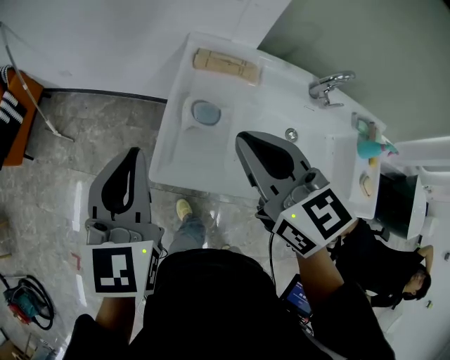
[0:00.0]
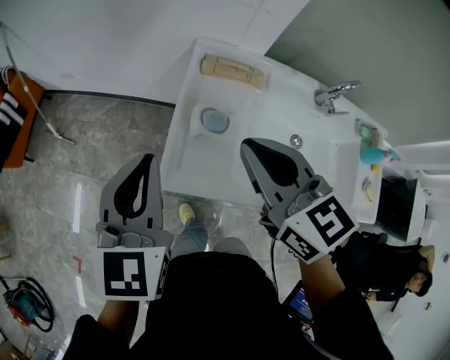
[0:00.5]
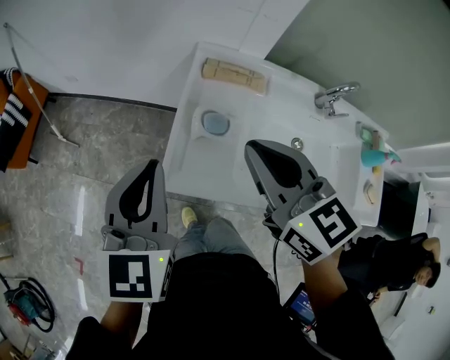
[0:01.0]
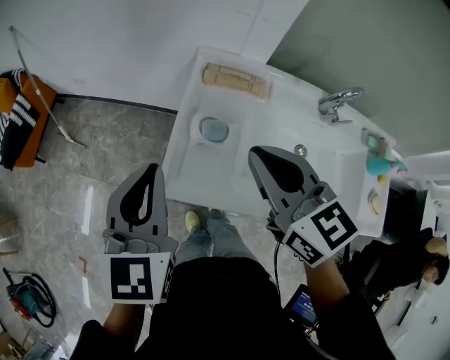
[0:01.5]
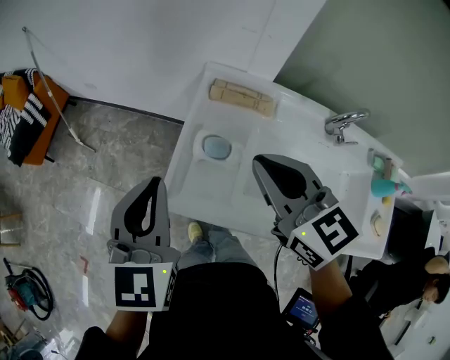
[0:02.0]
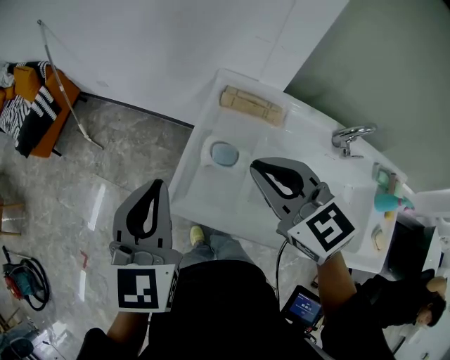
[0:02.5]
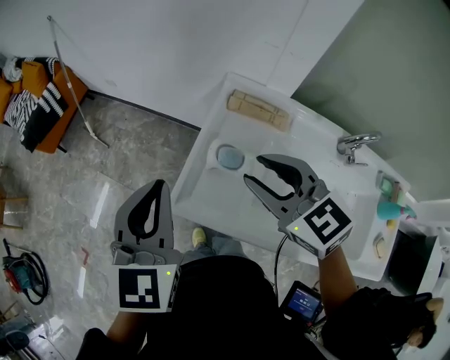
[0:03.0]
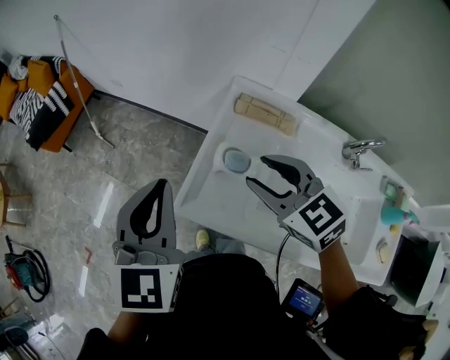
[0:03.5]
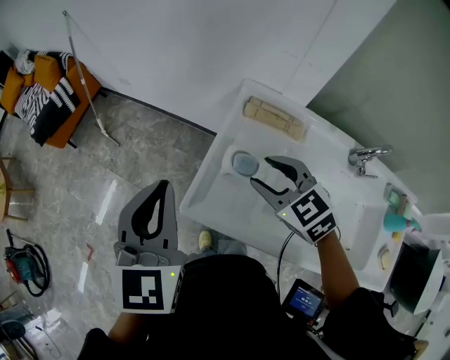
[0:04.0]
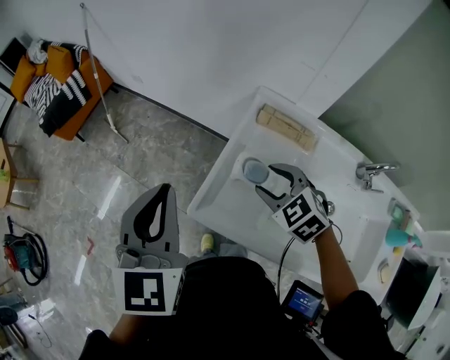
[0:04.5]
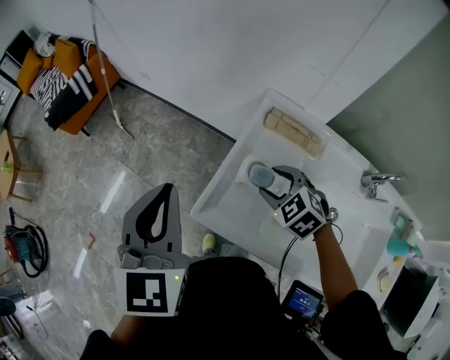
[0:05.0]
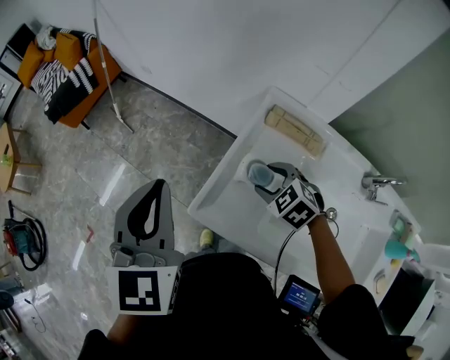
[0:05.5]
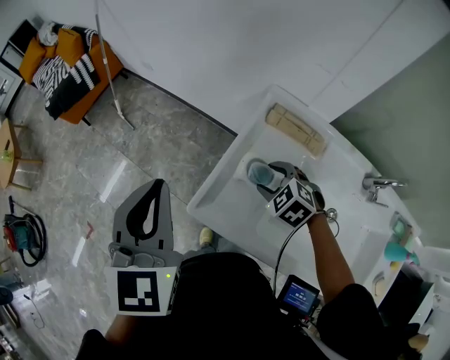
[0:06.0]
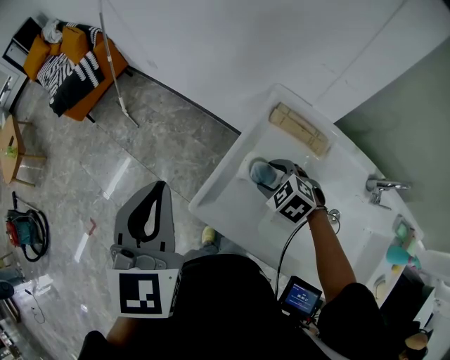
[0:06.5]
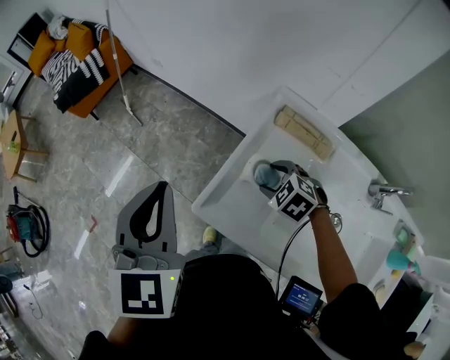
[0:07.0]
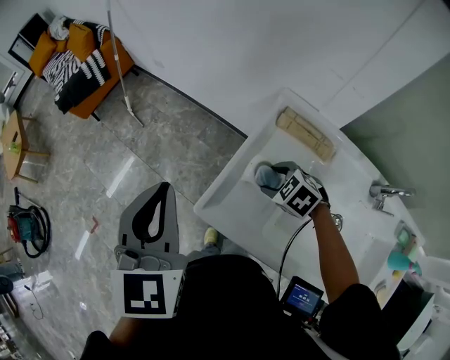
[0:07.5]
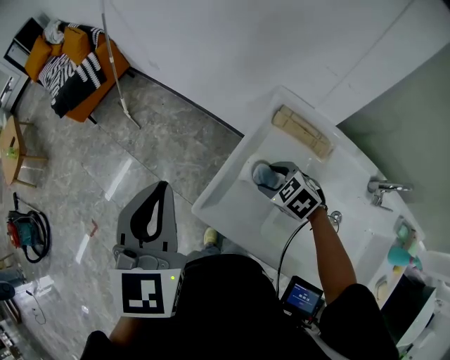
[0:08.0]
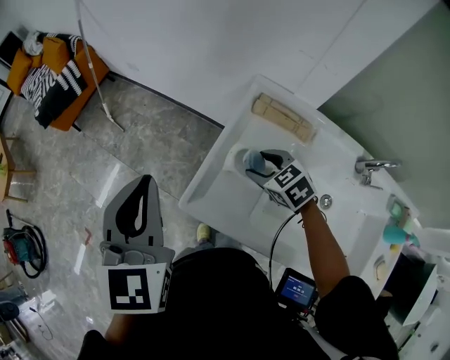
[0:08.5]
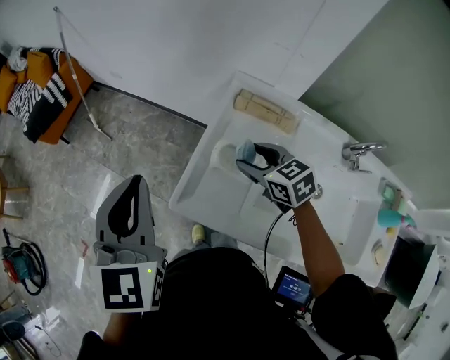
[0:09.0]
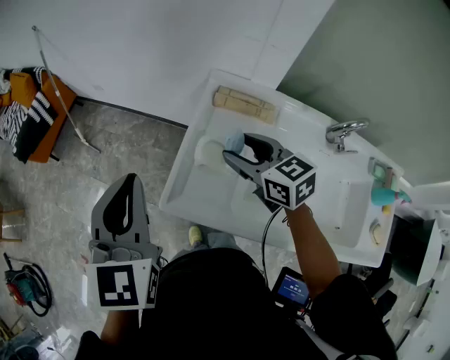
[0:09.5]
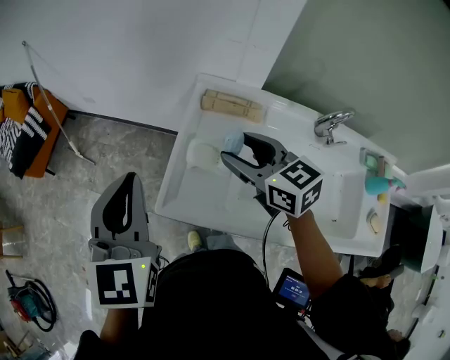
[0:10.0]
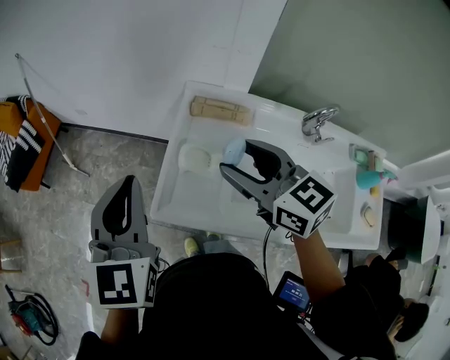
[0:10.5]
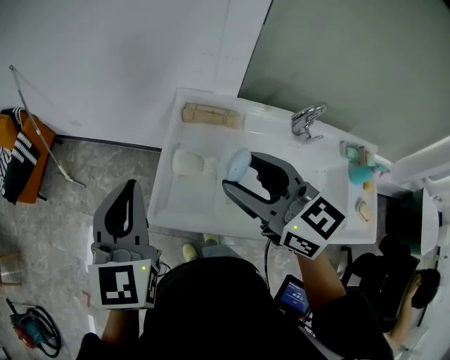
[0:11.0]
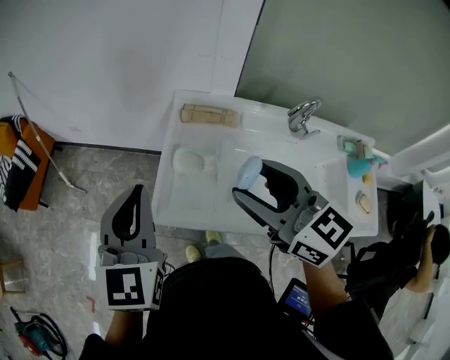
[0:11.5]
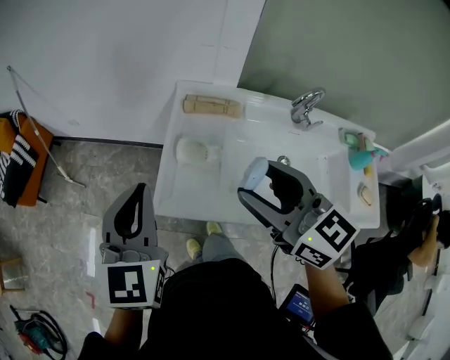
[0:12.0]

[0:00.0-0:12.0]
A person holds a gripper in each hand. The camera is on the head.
0:00.0 to 0:02.0: The right gripper ends up about 5 cm from where it was.
0:02.0 to 0:04.0: The right gripper moves downward, about 10 cm, turns by roughly 30 degrees, and opens its fingers.
0:04.0 to 0:06.0: The right gripper shifts about 15 cm downward, and turns by some 30 degrees.
0:06.0 to 0:08.0: The grippers make only small movements.
0:08.0 to 0:10.0: The left gripper moves about 5 cm, while the right gripper is displaced upward by some 20 cm, and points its fingers some 40 degrees further upward.
0:10.0 to 0:12.0: The right gripper moves backward and upward, approximately 15 cm.

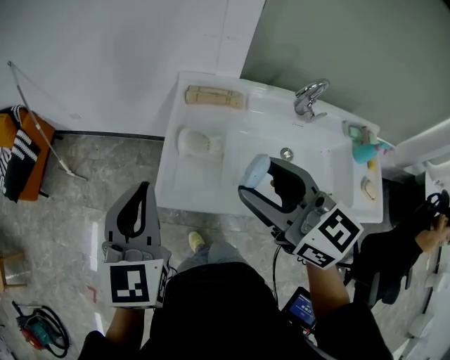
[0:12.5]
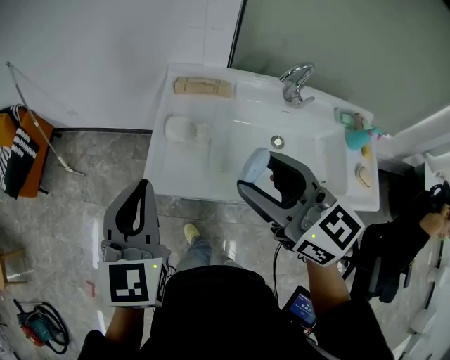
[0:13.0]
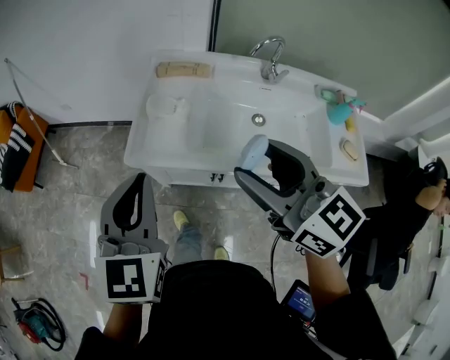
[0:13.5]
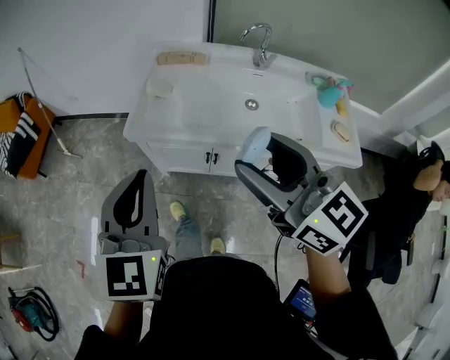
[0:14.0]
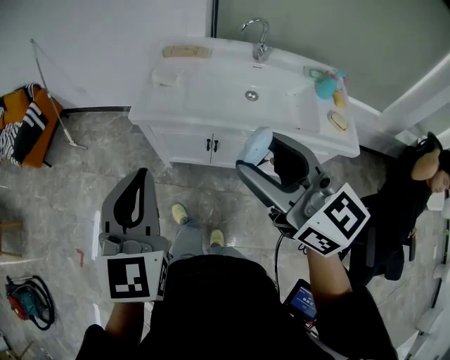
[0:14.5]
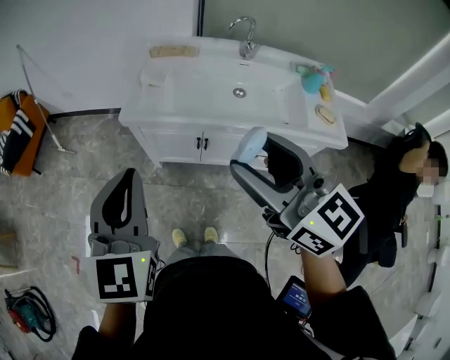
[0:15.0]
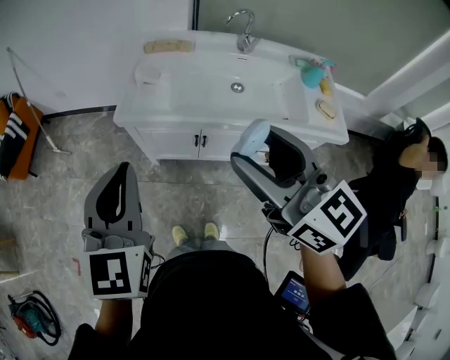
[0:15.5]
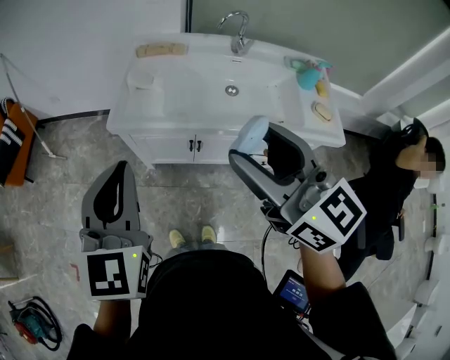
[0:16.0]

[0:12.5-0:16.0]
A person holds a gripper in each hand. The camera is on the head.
0:12.5 to 0:14.5: Both grippers move backward, approximately 35 cm.
0:14.5 to 0:16.0: The left gripper travels forward by roughly 5 cm.

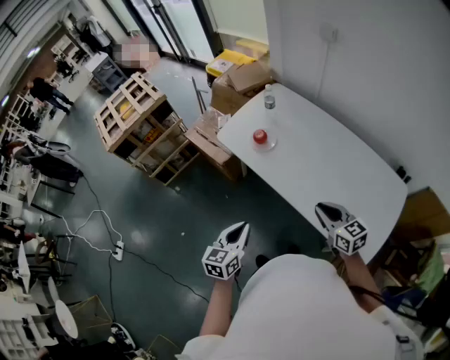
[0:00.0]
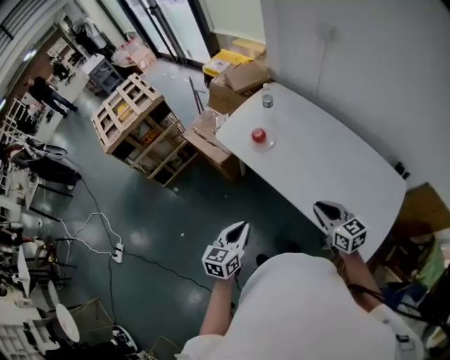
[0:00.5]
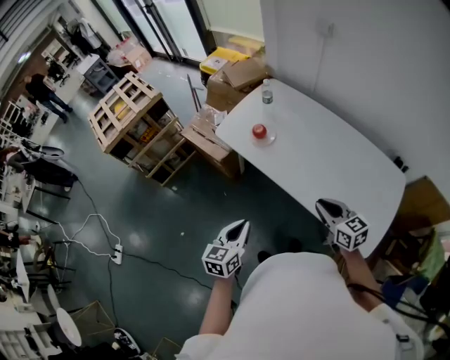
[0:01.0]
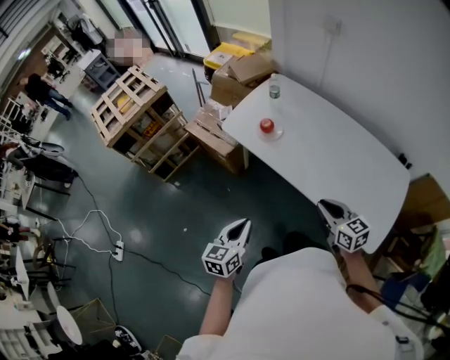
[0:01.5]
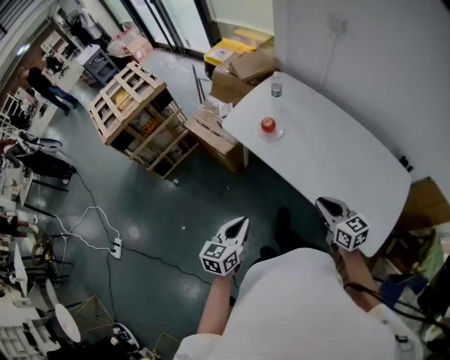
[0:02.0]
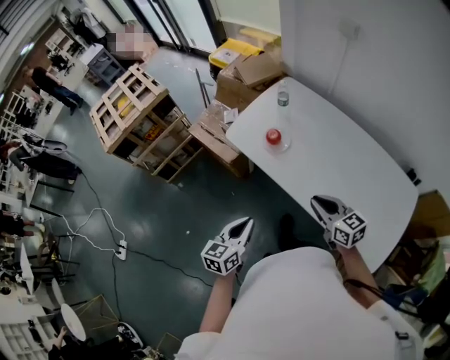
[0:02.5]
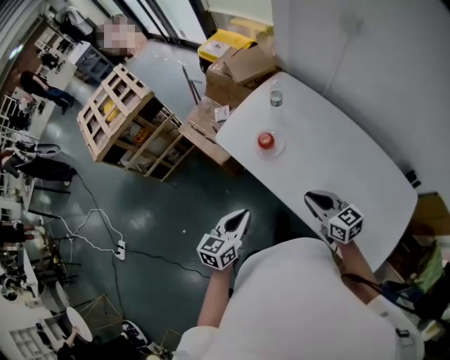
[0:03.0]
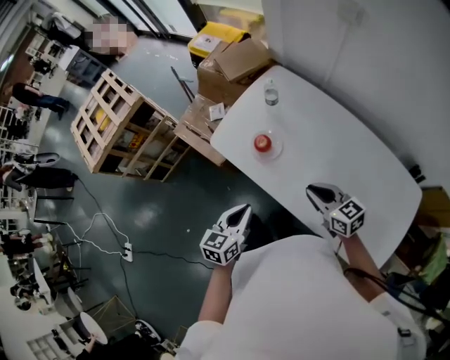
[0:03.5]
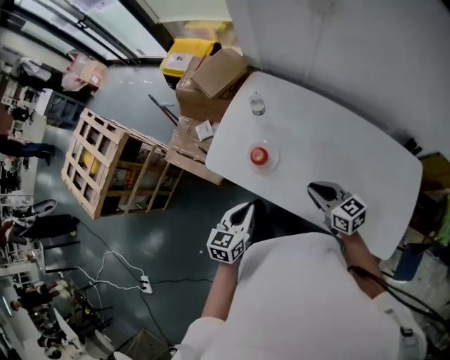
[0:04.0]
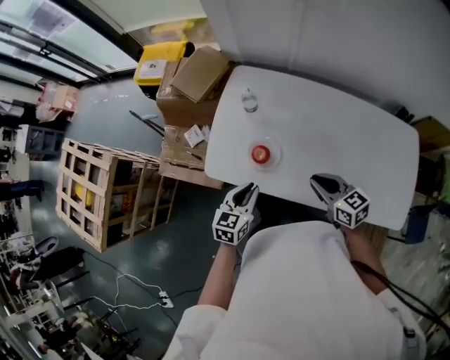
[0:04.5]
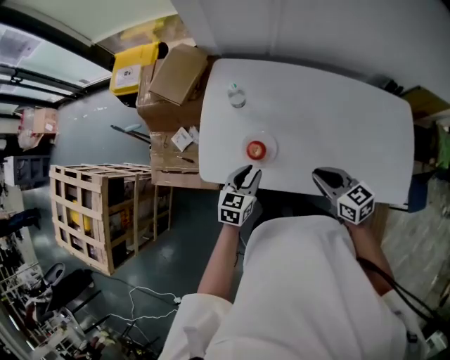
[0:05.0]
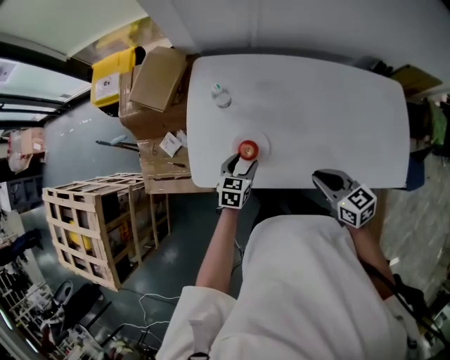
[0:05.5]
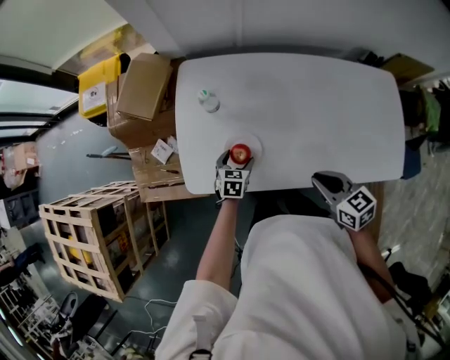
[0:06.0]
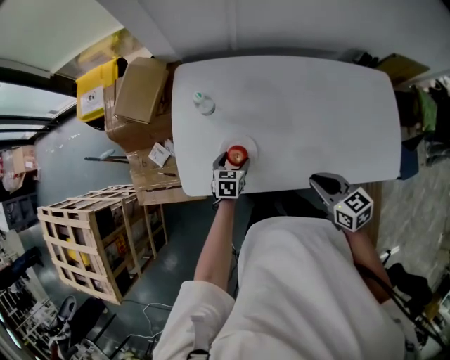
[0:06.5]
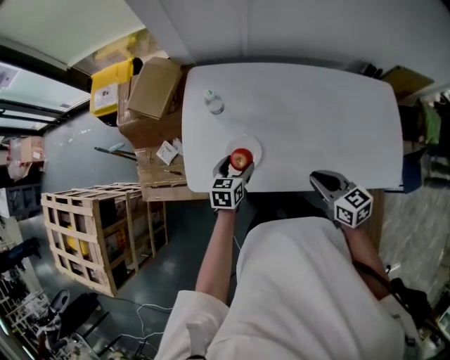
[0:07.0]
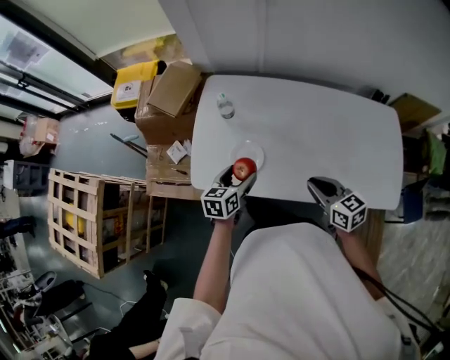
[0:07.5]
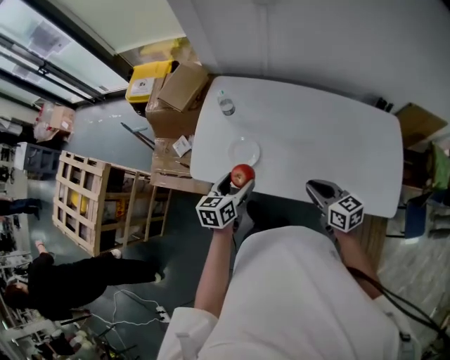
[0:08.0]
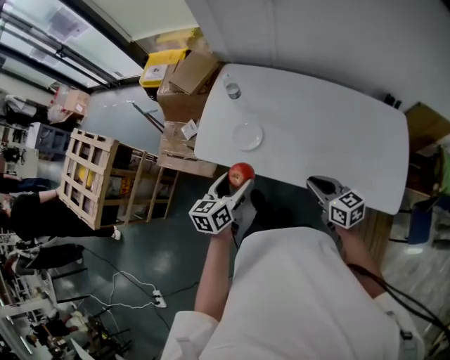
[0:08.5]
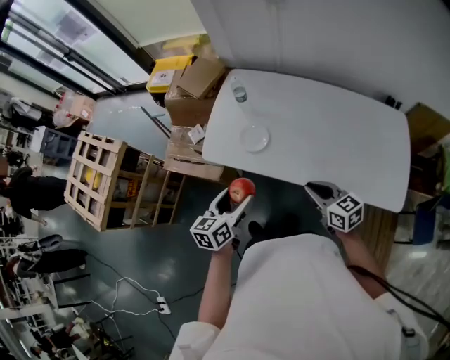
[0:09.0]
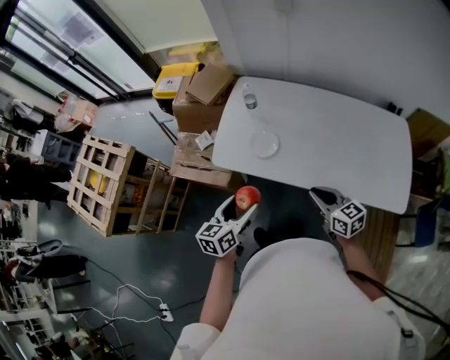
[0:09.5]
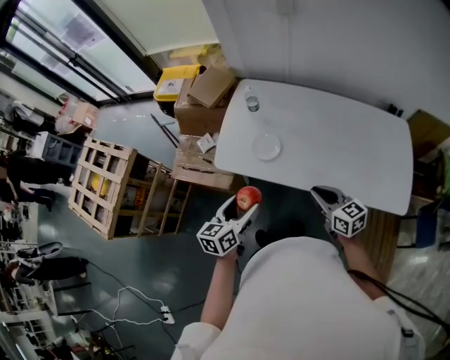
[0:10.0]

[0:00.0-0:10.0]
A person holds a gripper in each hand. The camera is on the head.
0:00.0 to 0:02.0: The two grippers go approximately 5 cm to the left.
0:02.0 to 0:04.0: Both grippers travel together forward, approximately 25 cm.
0:04.0 to 0:06.0: The left gripper moves downward, about 20 cm, rotates roughly 40 degrees, and opens. The right gripper rotates about 30 degrees.
0:06.0 to 0:08.0: The left gripper shifts roughly 25 cm upward and backward, and changes its angle by roughly 30 degrees. The right gripper travels to the right by approximately 5 cm.
0:08.0 to 0:10.0: The right gripper heads to the left and backward, covering about 10 cm, while the left gripper is displaced backward, to the left and upward by approximately 15 cm.

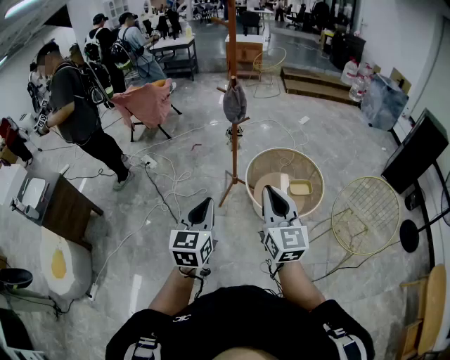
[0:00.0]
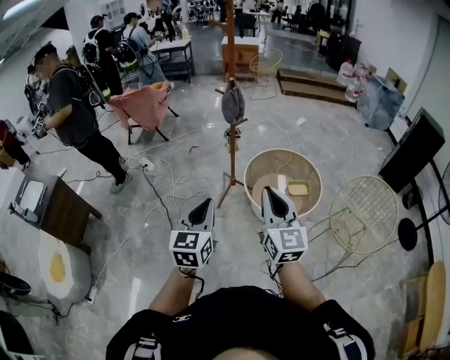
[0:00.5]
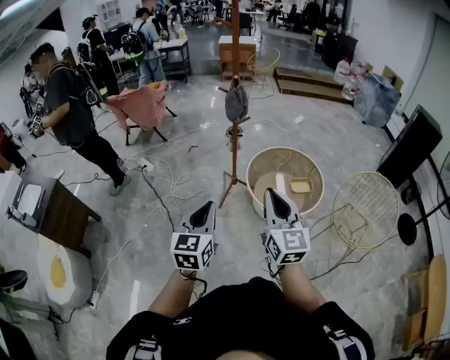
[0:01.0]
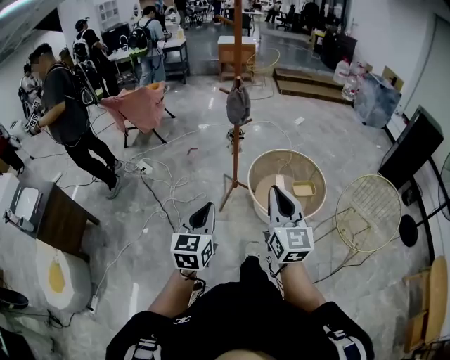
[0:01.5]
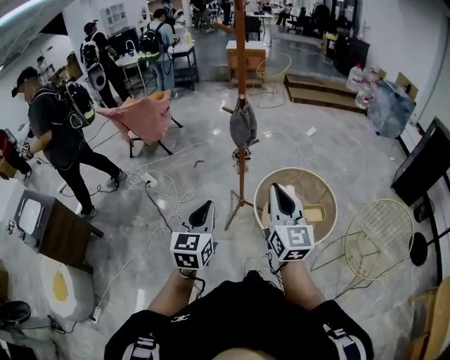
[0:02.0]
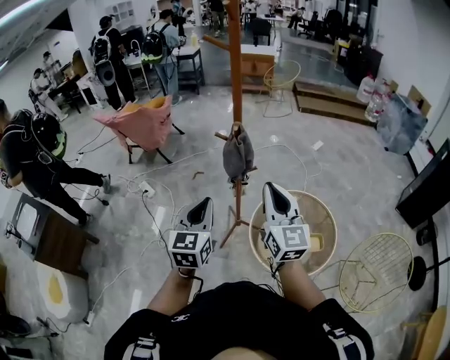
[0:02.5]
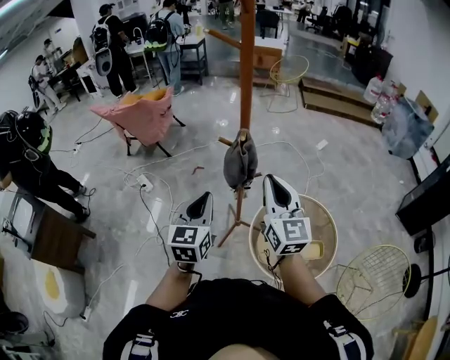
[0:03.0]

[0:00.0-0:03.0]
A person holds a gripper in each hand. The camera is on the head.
0:00.0 to 0:01.5: Both grippers move to the left, some 5 cm.
0:01.5 to 0:03.0: Both grippers are carried forward, approximately 50 cm.
